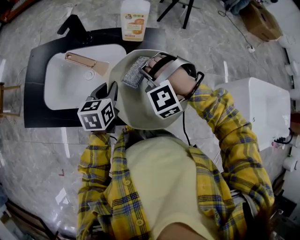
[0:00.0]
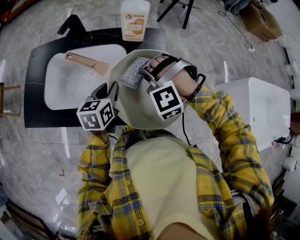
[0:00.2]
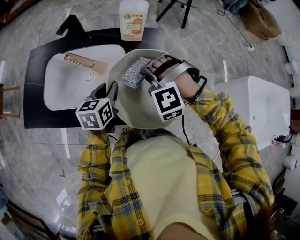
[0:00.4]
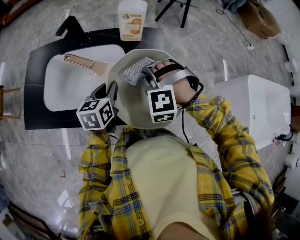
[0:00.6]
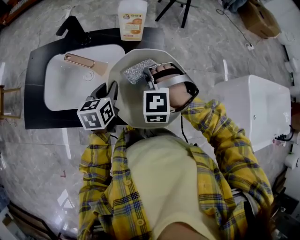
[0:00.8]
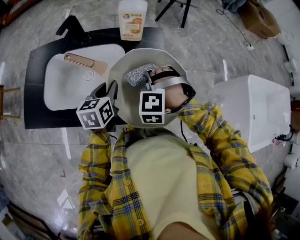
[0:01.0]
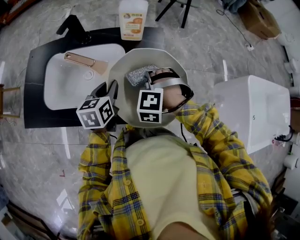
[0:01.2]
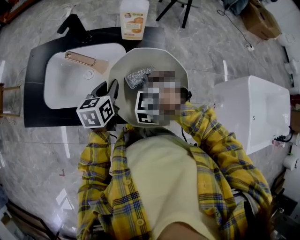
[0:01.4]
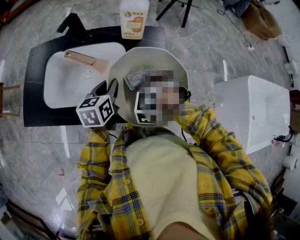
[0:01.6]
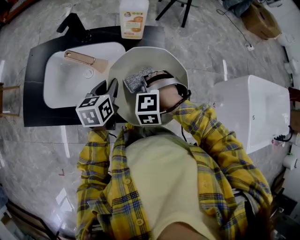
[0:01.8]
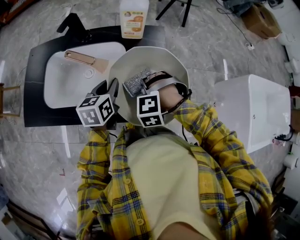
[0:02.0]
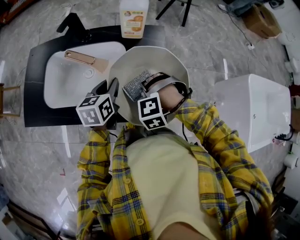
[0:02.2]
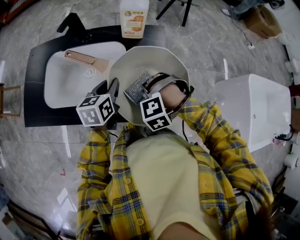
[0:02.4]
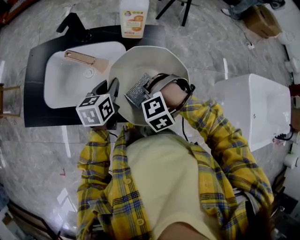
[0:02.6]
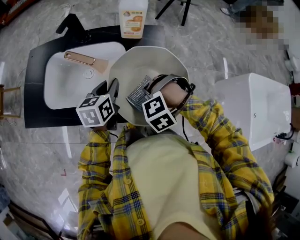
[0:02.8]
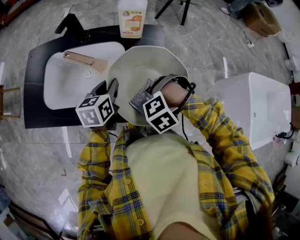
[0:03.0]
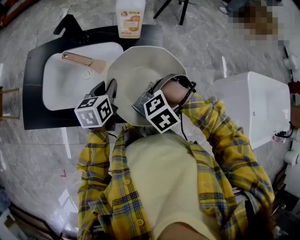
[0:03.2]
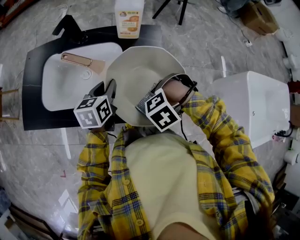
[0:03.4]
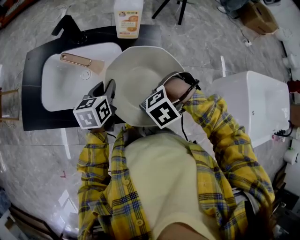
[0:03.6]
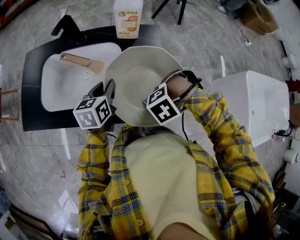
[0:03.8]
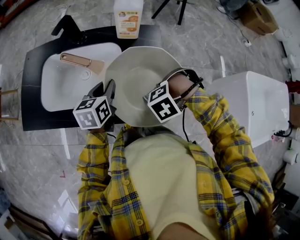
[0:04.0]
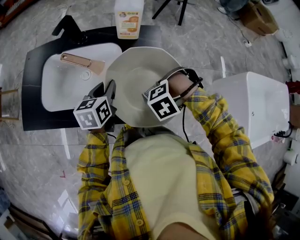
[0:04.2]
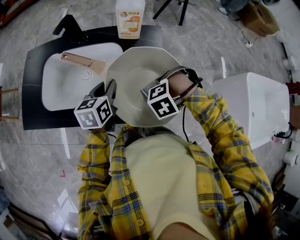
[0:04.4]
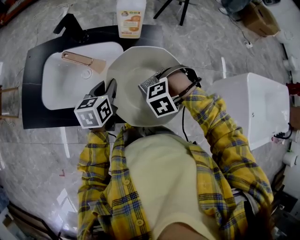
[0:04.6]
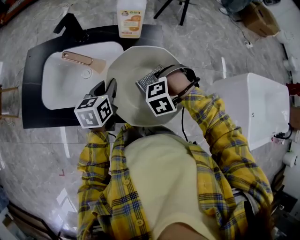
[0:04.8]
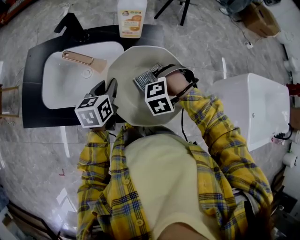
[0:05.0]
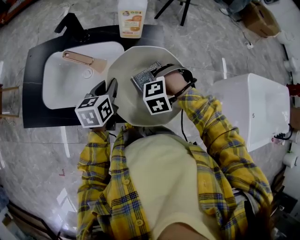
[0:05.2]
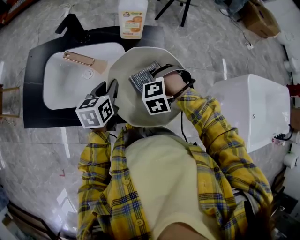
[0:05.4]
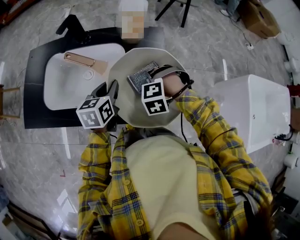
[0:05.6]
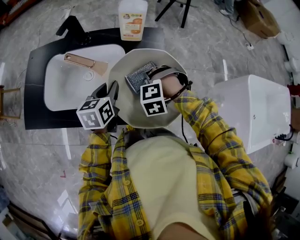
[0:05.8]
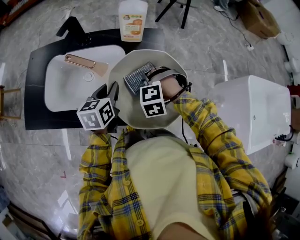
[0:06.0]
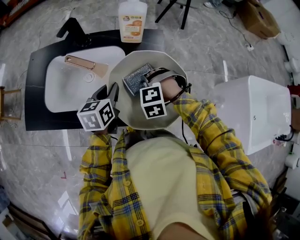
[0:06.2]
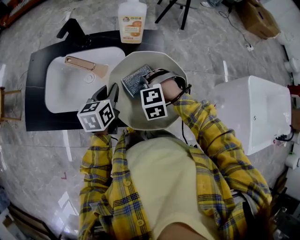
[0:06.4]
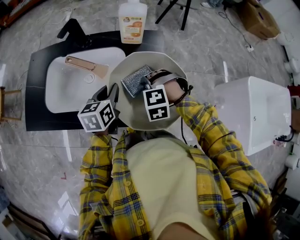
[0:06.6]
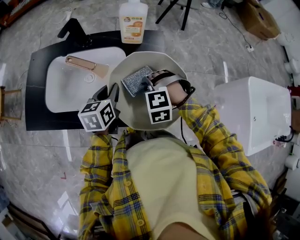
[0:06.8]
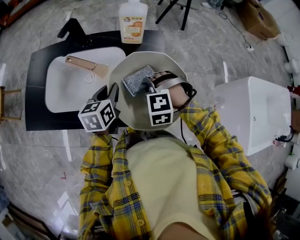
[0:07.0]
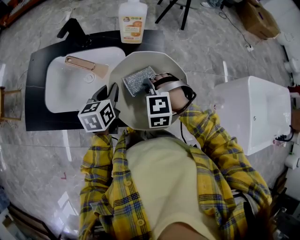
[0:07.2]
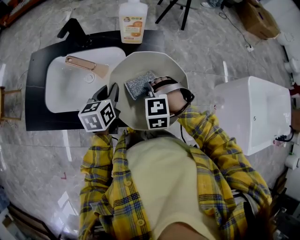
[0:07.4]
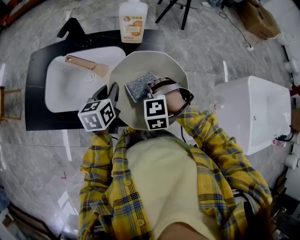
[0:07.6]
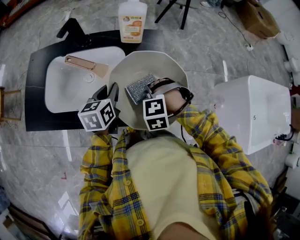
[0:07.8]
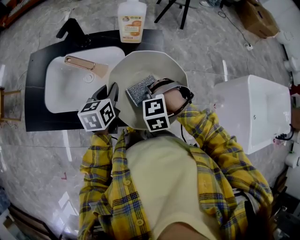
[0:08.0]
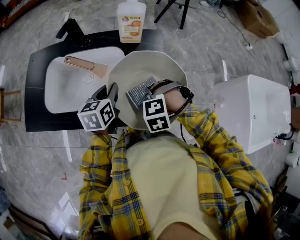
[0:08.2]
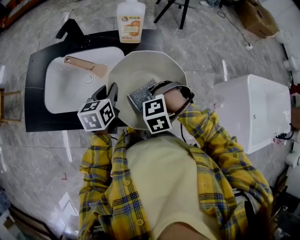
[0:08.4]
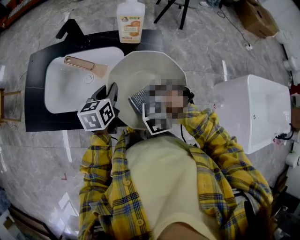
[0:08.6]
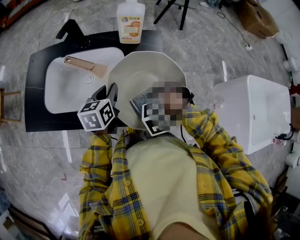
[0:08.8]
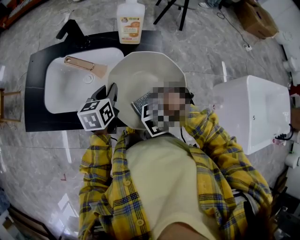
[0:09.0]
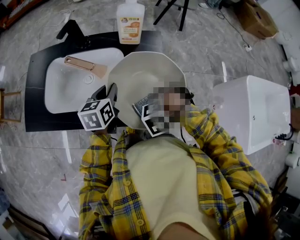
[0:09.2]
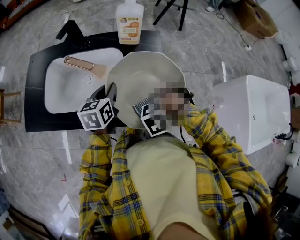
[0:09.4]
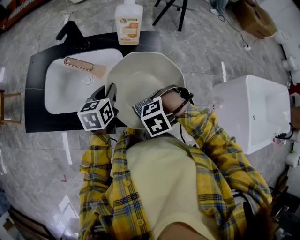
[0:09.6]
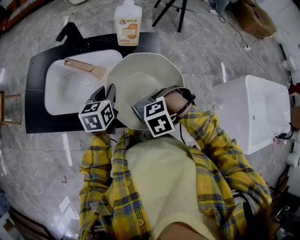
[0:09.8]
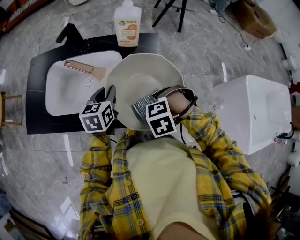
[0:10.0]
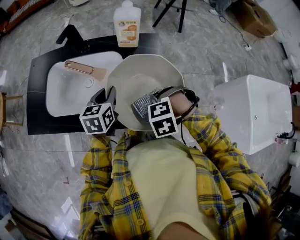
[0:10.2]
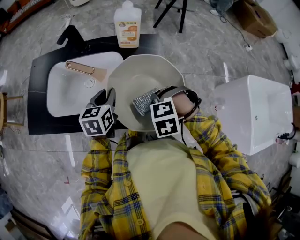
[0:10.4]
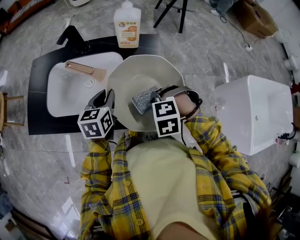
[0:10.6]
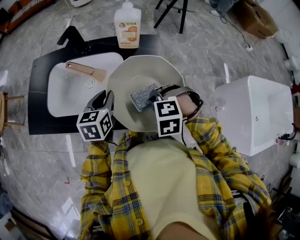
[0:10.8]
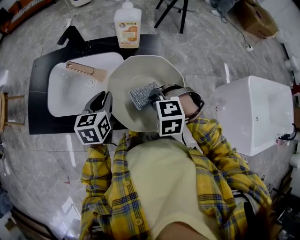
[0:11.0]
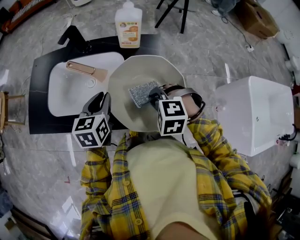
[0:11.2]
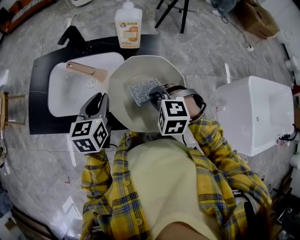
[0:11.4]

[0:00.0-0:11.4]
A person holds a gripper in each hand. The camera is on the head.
0:00.0 to 0:01.4: The right gripper changes place by some 5 cm, and rotates some 30 degrees.
0:01.4 to 0:02.8: The right gripper moves roughly 10 cm, and swivels some 30 degrees.
0:02.8 to 0:04.2: The right gripper changes place by some 10 cm, and changes its angle by roughly 20 degrees.
0:04.2 to 0:05.6: The right gripper shifts by some 10 cm, and rotates approximately 30 degrees.
0:05.6 to 0:07.2: The grippers make only small movements.
0:07.2 to 0:08.6: The right gripper ends up approximately 10 cm from where it was, and rotates approximately 30 degrees.
0:08.6 to 0:10.0: The grippers move only a little.
0:10.0 to 0:11.4: The right gripper ends up some 5 cm from where it was, and changes its angle by approximately 30 degrees; the left gripper moves upward, about 5 cm.

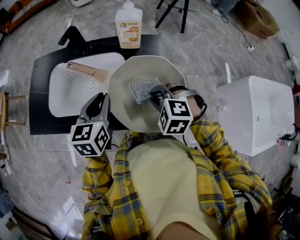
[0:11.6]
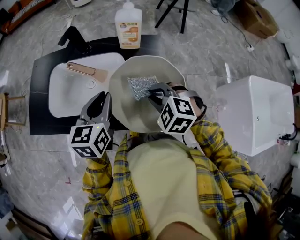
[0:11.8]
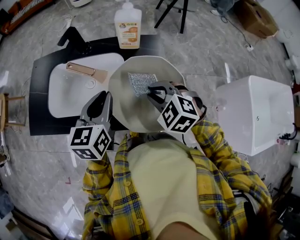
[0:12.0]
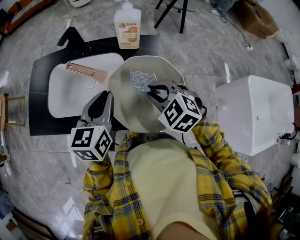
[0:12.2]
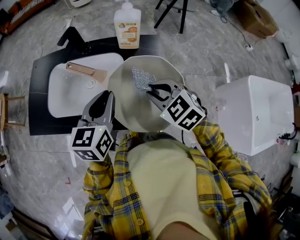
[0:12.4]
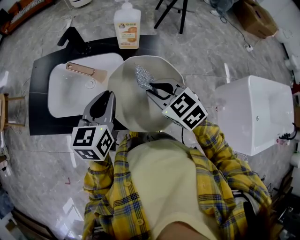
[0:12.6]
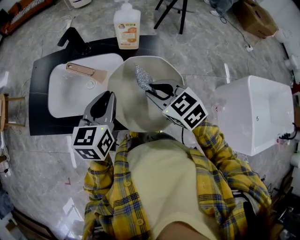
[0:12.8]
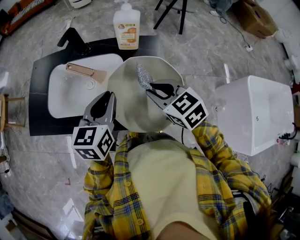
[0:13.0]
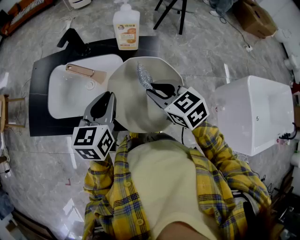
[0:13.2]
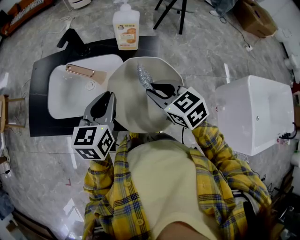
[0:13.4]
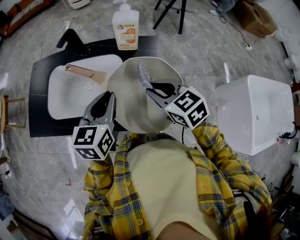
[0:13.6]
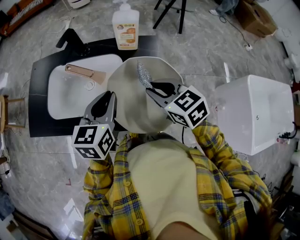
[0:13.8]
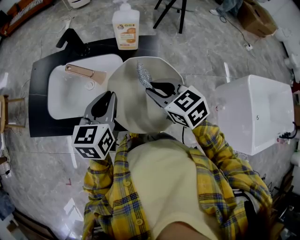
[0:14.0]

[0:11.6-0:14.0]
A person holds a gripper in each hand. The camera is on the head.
0:11.6 to 0:12.8: The right gripper moves upward, some 5 cm, and rotates roughly 40 degrees.
0:12.8 to 0:14.0: The grippers make only small movements.

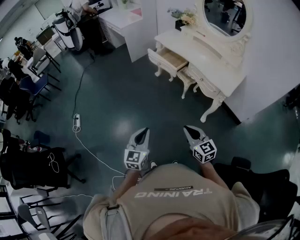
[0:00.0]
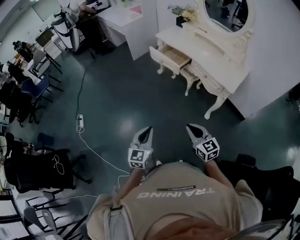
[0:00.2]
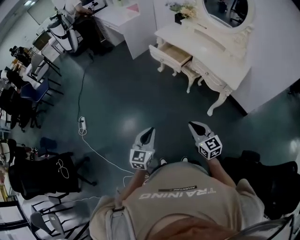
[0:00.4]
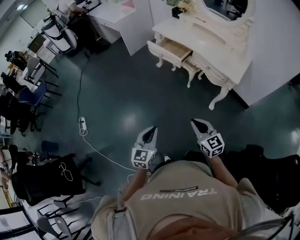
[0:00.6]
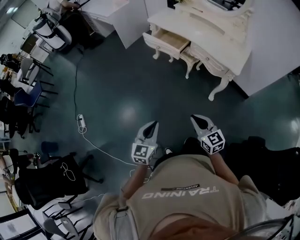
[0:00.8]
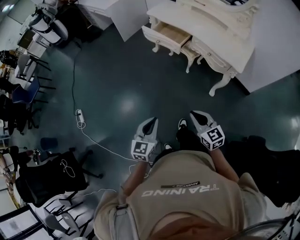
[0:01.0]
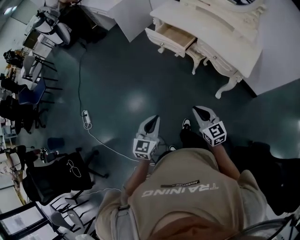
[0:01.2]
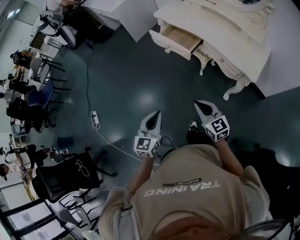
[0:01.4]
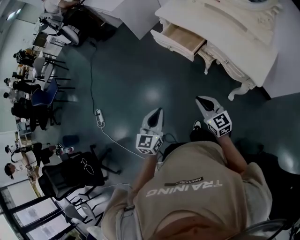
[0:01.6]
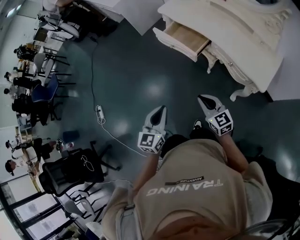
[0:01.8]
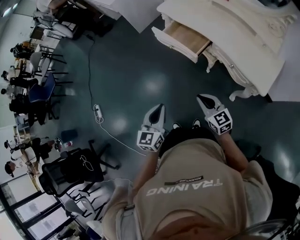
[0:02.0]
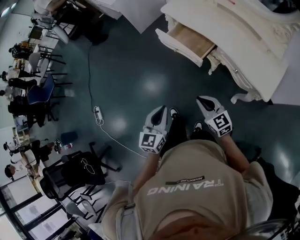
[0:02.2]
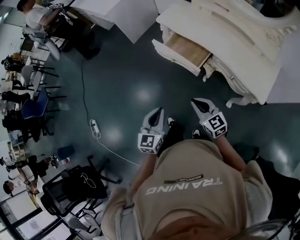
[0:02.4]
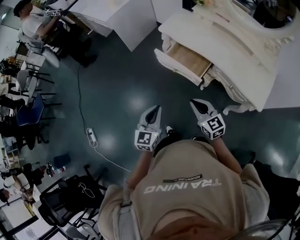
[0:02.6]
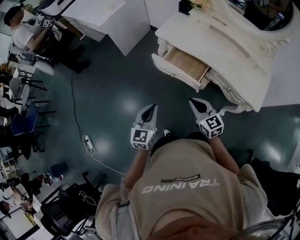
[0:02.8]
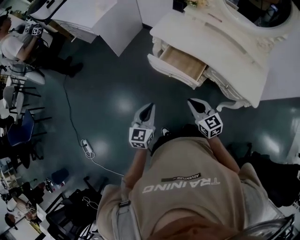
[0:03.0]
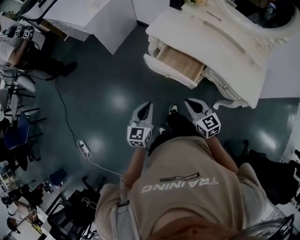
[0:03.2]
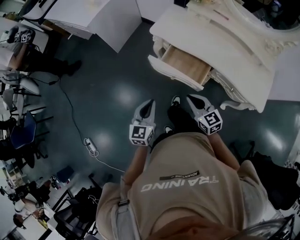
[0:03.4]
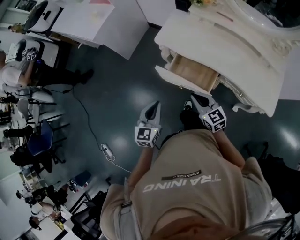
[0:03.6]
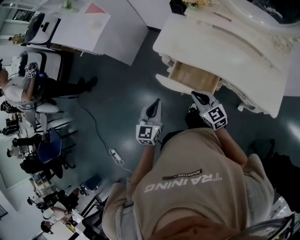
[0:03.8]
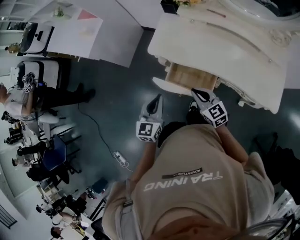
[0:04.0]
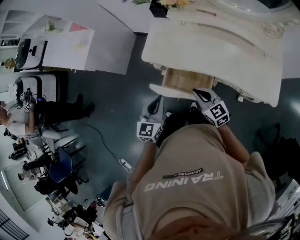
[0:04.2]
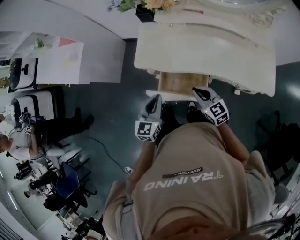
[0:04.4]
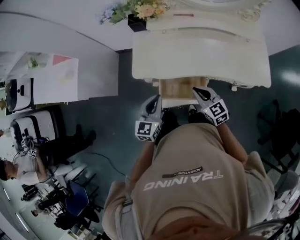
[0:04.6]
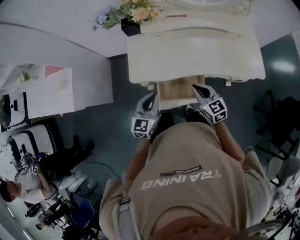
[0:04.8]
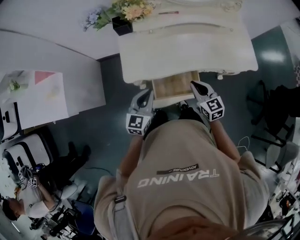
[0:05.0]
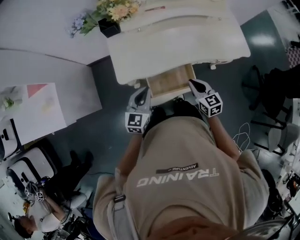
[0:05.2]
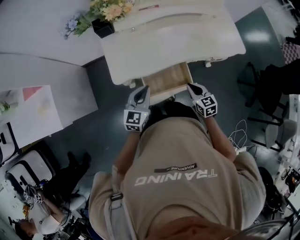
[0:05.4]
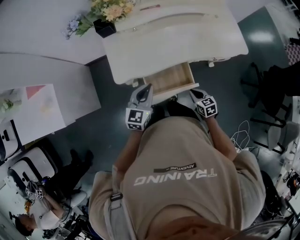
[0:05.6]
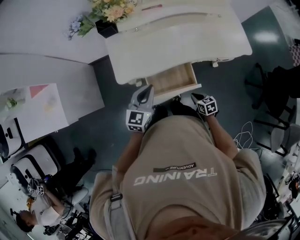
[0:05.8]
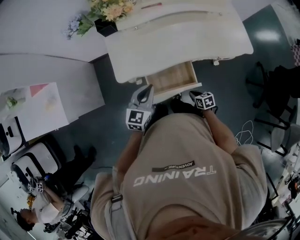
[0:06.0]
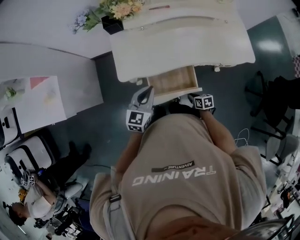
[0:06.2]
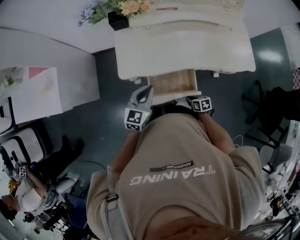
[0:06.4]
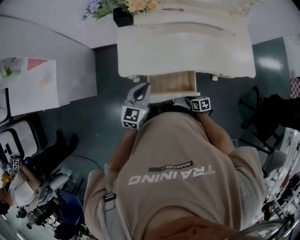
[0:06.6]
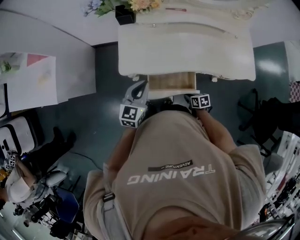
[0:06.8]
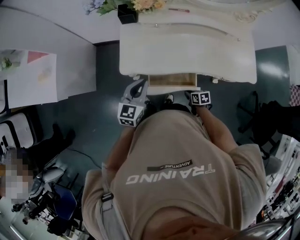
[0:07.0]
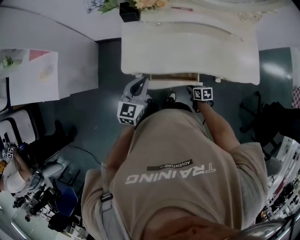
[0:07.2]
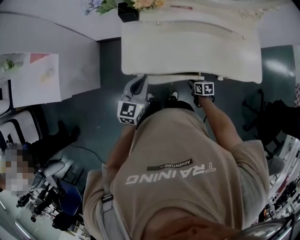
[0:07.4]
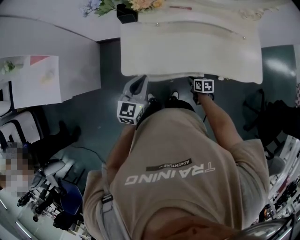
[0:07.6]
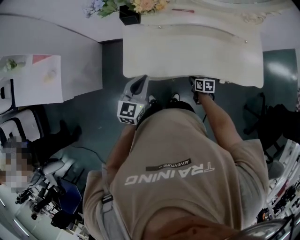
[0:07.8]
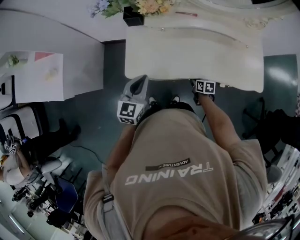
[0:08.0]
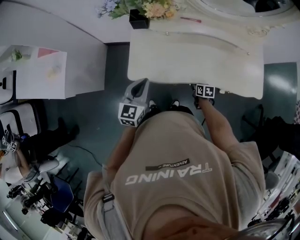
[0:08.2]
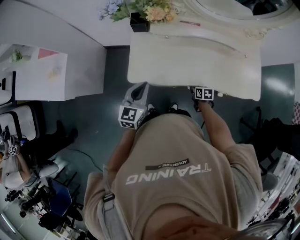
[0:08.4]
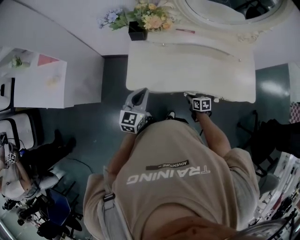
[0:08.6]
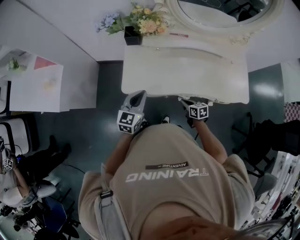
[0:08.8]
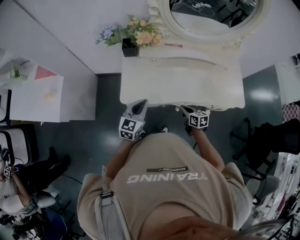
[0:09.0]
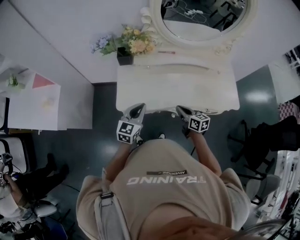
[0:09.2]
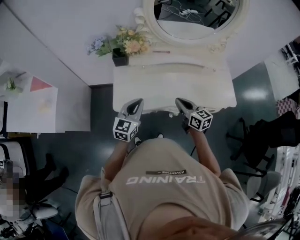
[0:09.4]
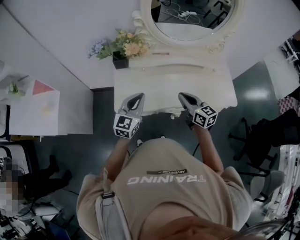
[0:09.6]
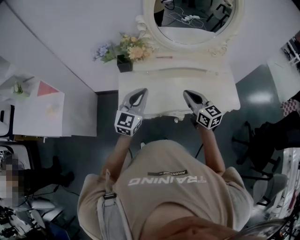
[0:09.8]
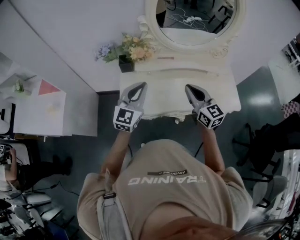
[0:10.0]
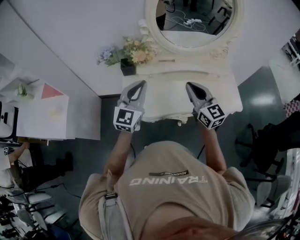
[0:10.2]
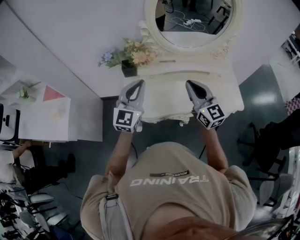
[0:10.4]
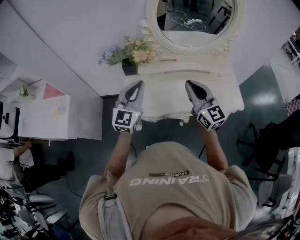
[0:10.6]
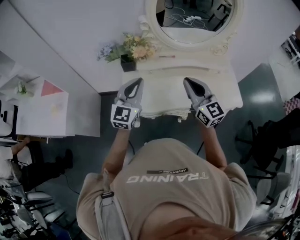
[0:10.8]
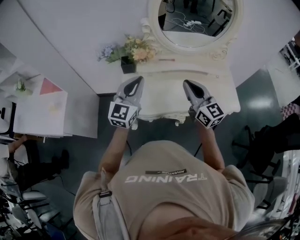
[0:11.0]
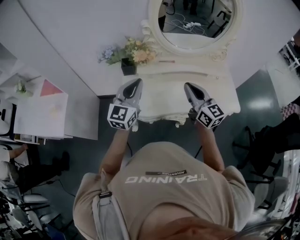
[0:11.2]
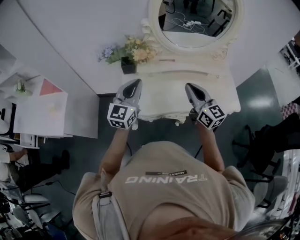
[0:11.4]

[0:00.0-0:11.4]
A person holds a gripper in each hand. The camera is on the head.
0:00.0 to 0:01.4: Both grippers travel together forward, approximately 25 cm.
0:01.4 to 0:02.8: The two grippers go some 35 cm forward.
0:02.8 to 0:04.2: Both grippers travel together forward, about 30 cm.
0:04.2 to 0:05.6: The left gripper changes place by about 10 cm, and swivels approximately 40 degrees. Meanwhile the right gripper is displaced downward by roughly 15 cm, and swivels roughly 50 degrees.
0:05.6 to 0:07.2: The left gripper shifts by approximately 5 cm; the right gripper heads downward and forward, covering some 15 cm, and changes its angle by approximately 30 degrees.
0:07.2 to 0:08.6: The right gripper shifts about 5 cm forward.
0:08.6 to 0:10.0: The right gripper heads upward, covering some 40 cm, and tips its fingers upward by some 50 degrees; the left gripper is displaced upward by about 20 cm, and turns by some 30 degrees.
